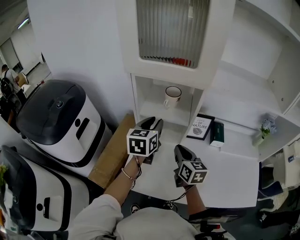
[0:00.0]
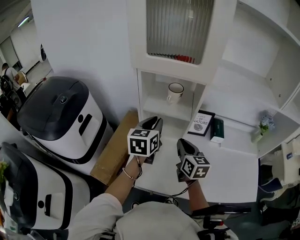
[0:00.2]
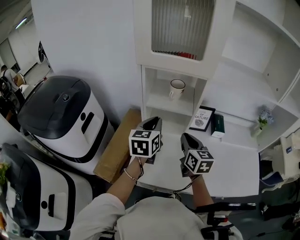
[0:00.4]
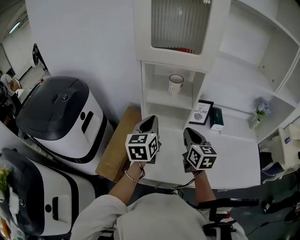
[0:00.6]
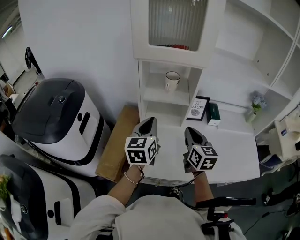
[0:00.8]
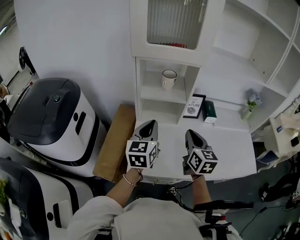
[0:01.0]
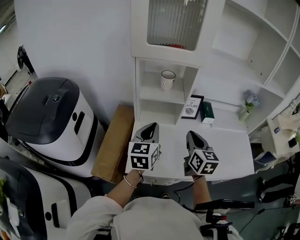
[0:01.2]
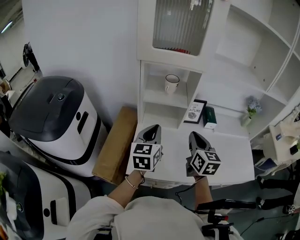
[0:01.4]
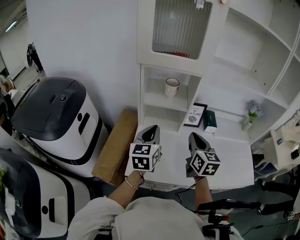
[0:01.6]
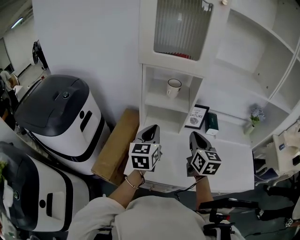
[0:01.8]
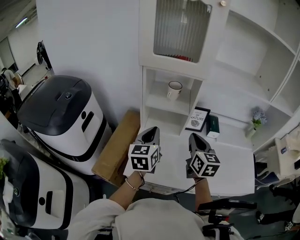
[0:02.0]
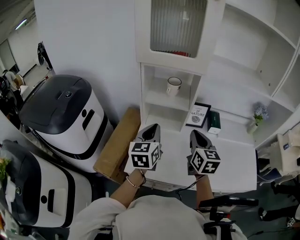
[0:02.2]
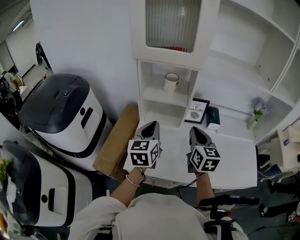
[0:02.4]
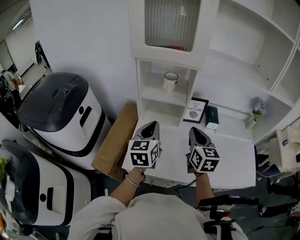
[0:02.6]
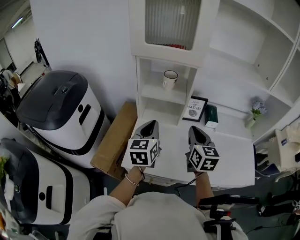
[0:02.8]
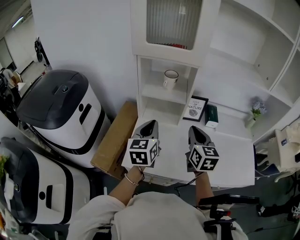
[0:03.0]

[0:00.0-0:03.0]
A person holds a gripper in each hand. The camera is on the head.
0:00.0 to 0:01.6: The right gripper shifts some 10 cm upward and backward; the left gripper heads backward, covering some 15 cm, and closes its fingers.
0:01.6 to 0:03.0: The grippers make only small movements.

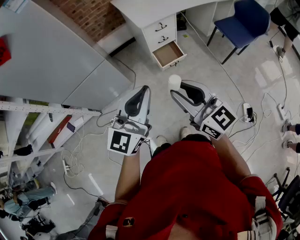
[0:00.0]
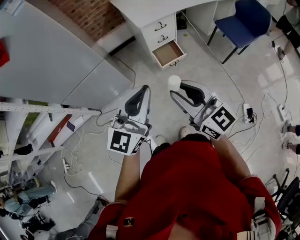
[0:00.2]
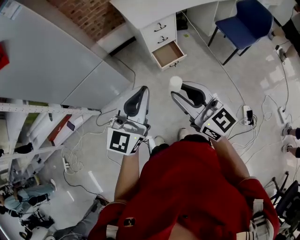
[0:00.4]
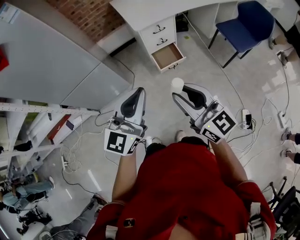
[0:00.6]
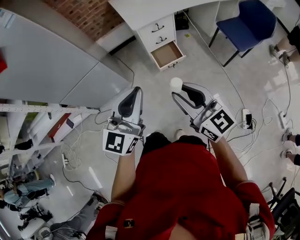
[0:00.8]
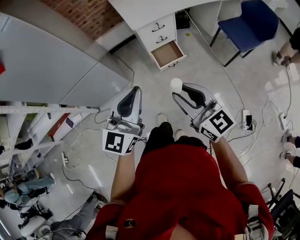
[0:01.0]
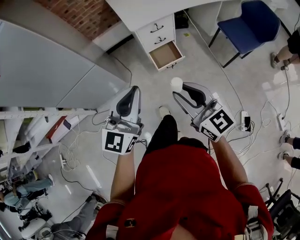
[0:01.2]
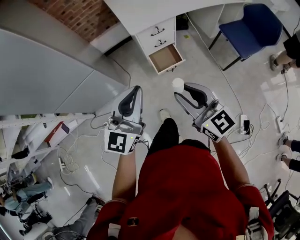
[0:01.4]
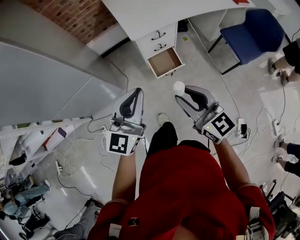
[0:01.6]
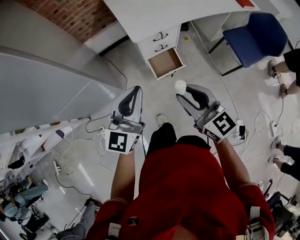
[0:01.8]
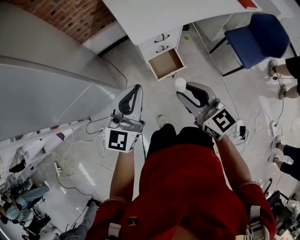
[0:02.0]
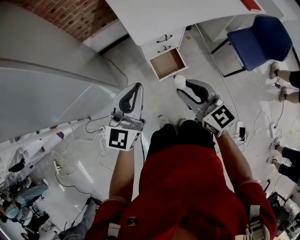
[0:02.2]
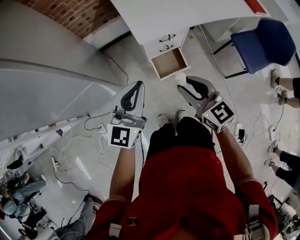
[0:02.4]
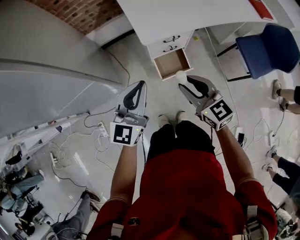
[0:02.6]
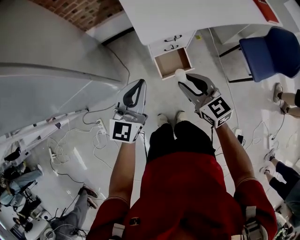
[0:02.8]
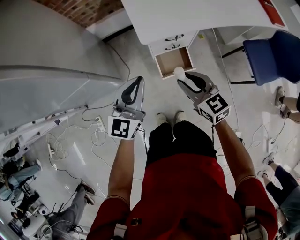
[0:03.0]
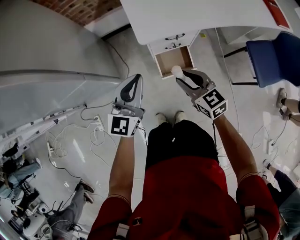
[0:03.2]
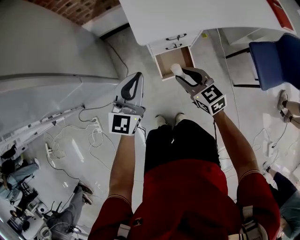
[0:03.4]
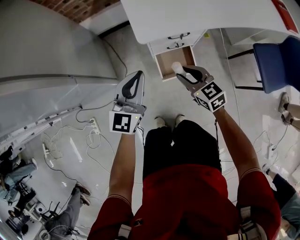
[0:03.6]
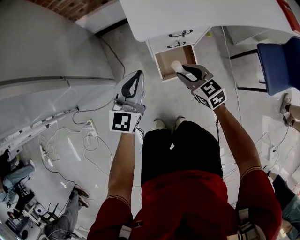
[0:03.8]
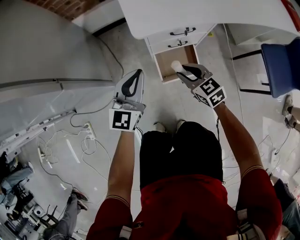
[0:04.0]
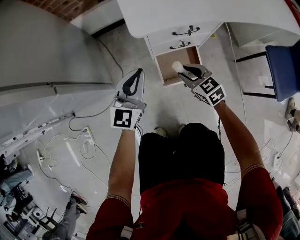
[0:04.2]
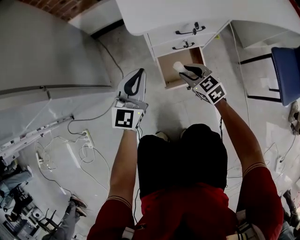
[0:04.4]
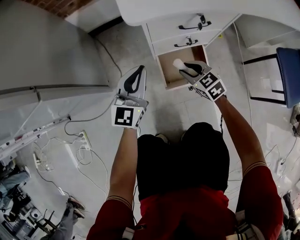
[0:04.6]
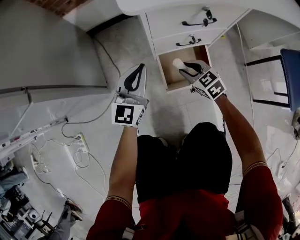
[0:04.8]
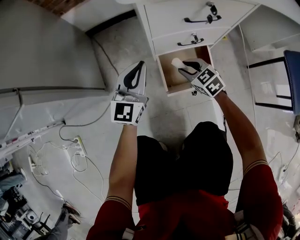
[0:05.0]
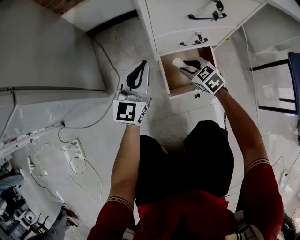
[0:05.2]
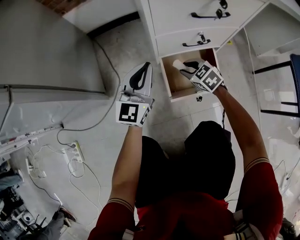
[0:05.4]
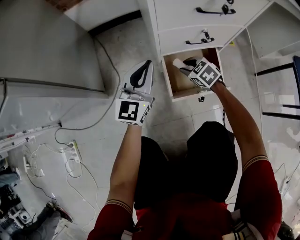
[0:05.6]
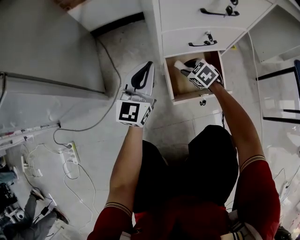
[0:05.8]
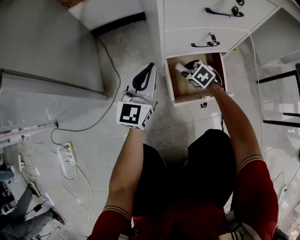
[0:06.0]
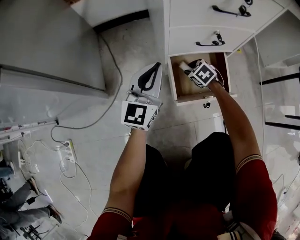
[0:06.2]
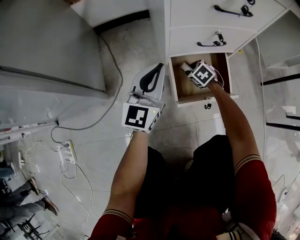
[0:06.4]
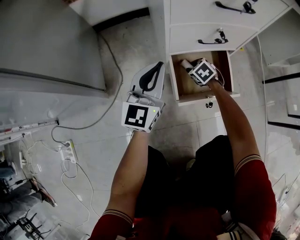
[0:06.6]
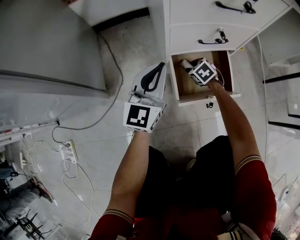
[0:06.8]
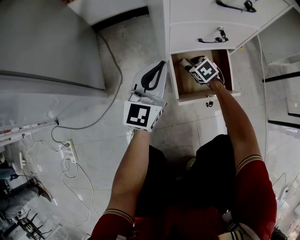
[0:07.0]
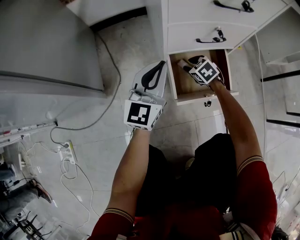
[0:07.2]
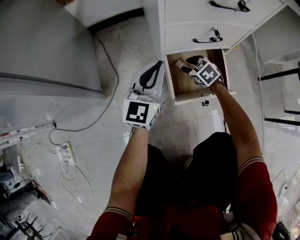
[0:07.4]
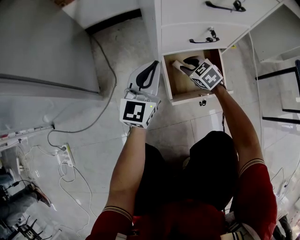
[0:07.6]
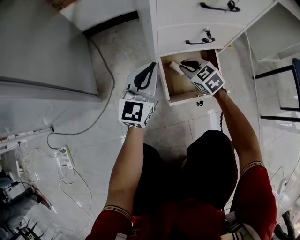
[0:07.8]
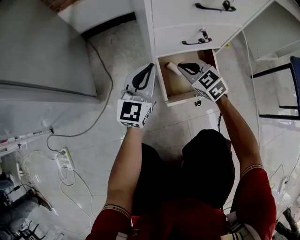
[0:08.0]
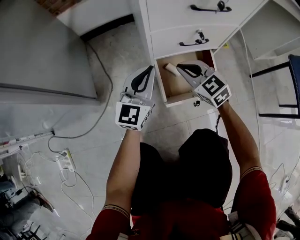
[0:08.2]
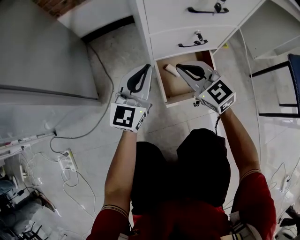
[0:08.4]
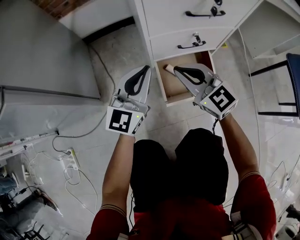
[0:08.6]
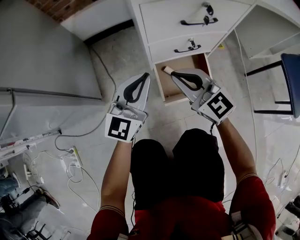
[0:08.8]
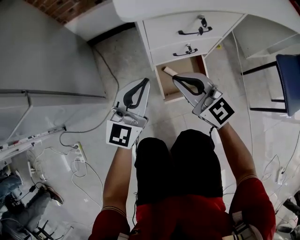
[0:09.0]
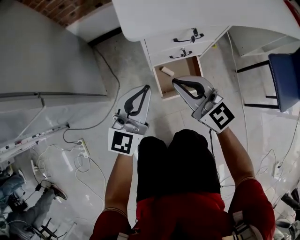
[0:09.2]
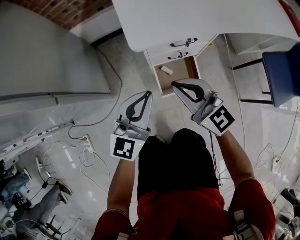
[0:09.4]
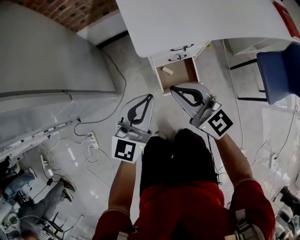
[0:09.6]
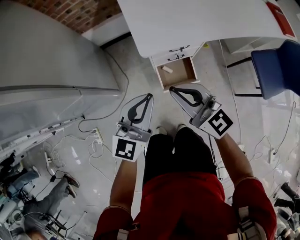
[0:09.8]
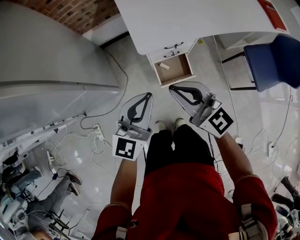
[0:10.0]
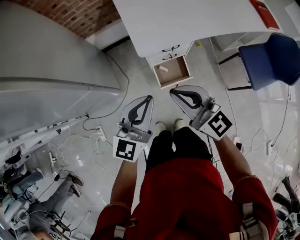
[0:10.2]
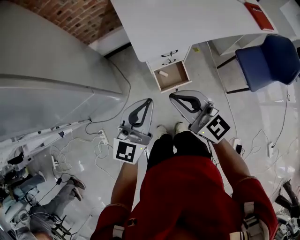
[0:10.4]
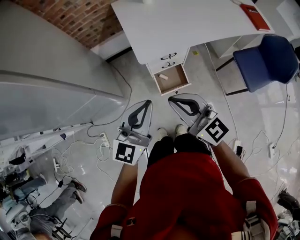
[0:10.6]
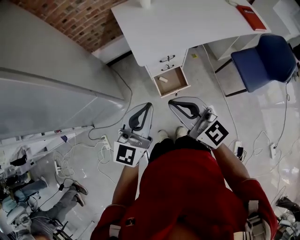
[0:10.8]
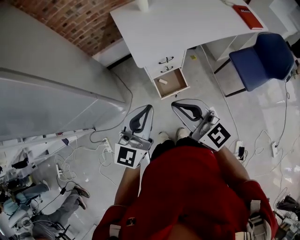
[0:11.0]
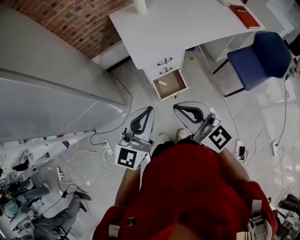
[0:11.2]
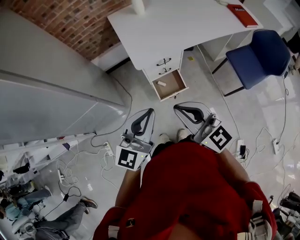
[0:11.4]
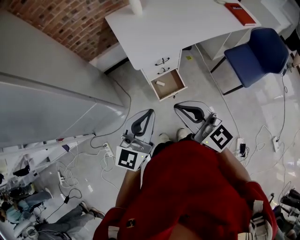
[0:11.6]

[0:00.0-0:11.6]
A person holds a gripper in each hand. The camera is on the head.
0:00.0 to 0:01.4: The right gripper shifts some 20 cm forward, to the right and downward. The left gripper heads forward and to the right, covering some 15 cm.
0:01.4 to 0:02.8: The two grippers go roughly 30 cm forward and downward.
0:02.8 to 0:04.4: Both grippers travel together downward, approximately 40 cm. The right gripper turns by approximately 20 degrees.
0:04.4 to 0:05.8: The grippers both shift downward by some 20 cm.
0:05.8 to 0:07.2: The right gripper heads downward, covering approximately 5 cm.
0:07.2 to 0:08.8: The left gripper shifts roughly 10 cm upward; the right gripper travels upward by about 35 cm, tips its fingers upward by approximately 50 degrees, and closes.
0:08.8 to 0:10.2: Both grippers travel together upward, approximately 50 cm.
0:10.2 to 0:11.6: Both grippers move backward and upward, about 10 cm.

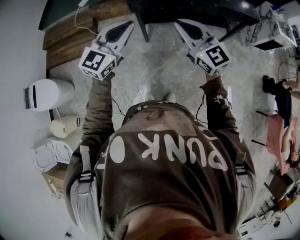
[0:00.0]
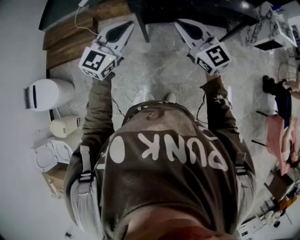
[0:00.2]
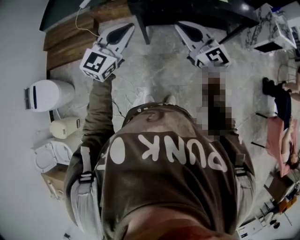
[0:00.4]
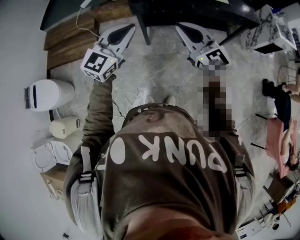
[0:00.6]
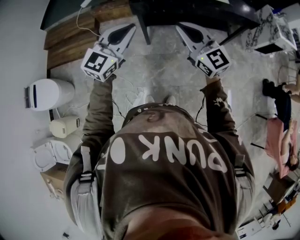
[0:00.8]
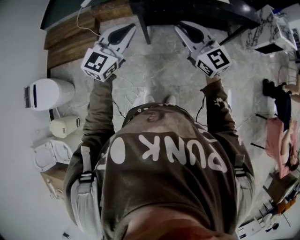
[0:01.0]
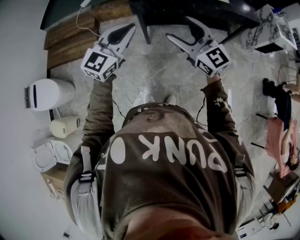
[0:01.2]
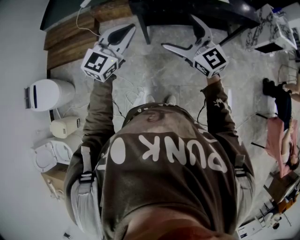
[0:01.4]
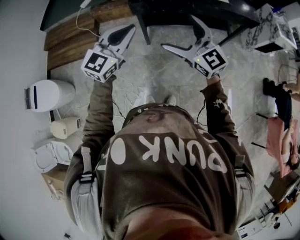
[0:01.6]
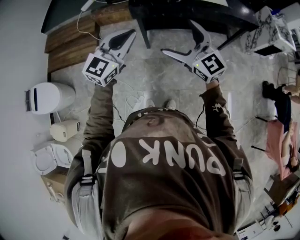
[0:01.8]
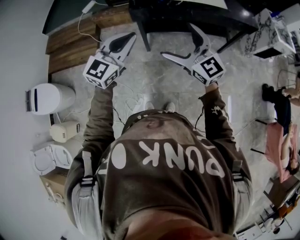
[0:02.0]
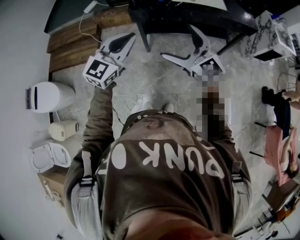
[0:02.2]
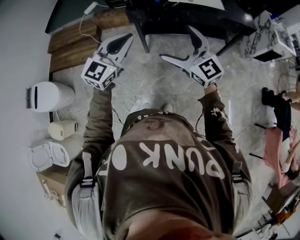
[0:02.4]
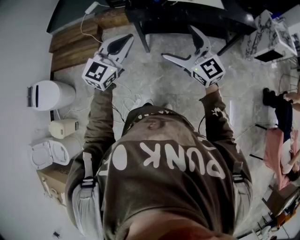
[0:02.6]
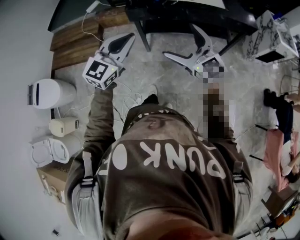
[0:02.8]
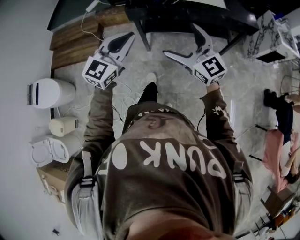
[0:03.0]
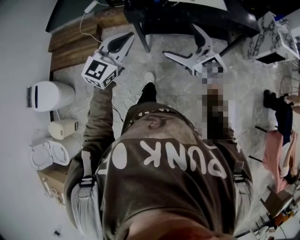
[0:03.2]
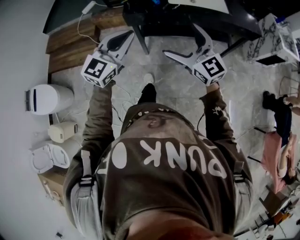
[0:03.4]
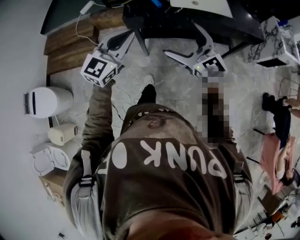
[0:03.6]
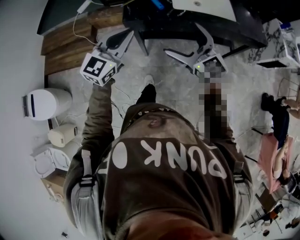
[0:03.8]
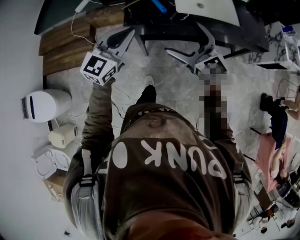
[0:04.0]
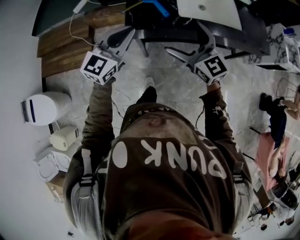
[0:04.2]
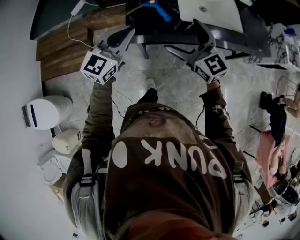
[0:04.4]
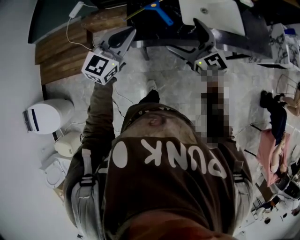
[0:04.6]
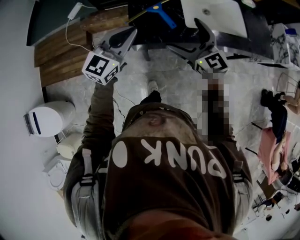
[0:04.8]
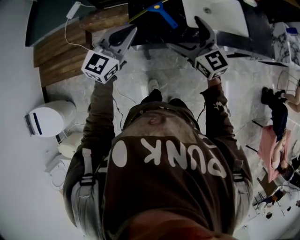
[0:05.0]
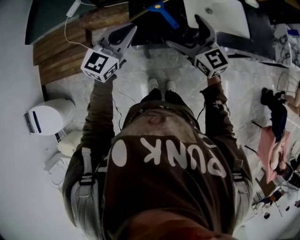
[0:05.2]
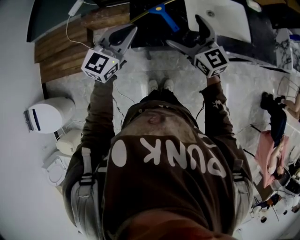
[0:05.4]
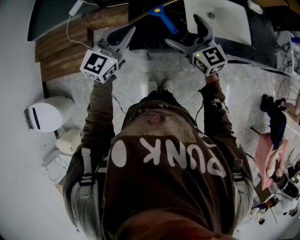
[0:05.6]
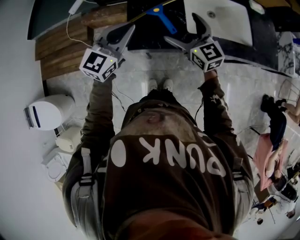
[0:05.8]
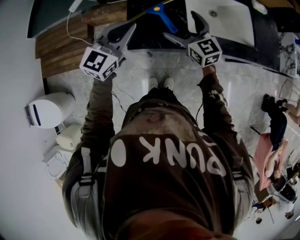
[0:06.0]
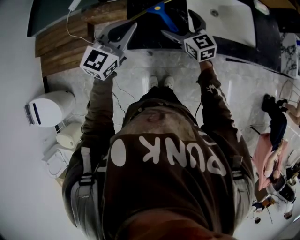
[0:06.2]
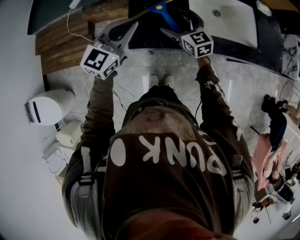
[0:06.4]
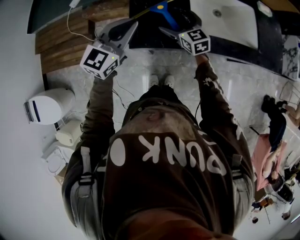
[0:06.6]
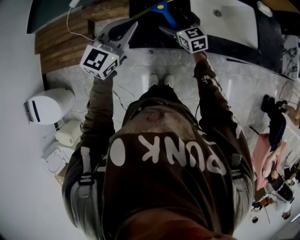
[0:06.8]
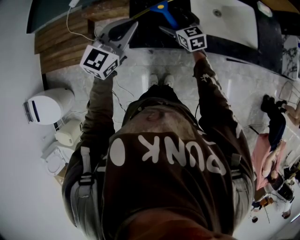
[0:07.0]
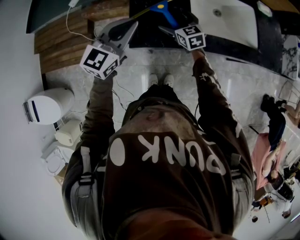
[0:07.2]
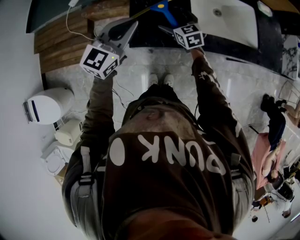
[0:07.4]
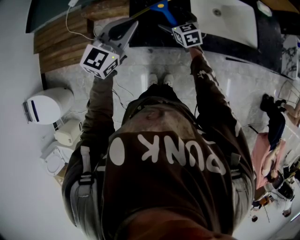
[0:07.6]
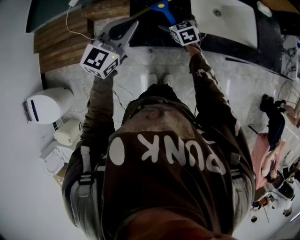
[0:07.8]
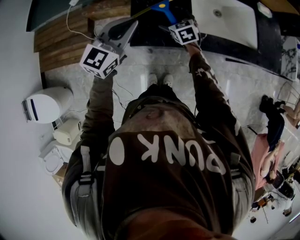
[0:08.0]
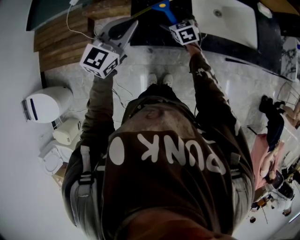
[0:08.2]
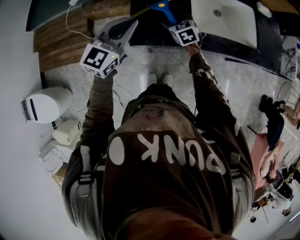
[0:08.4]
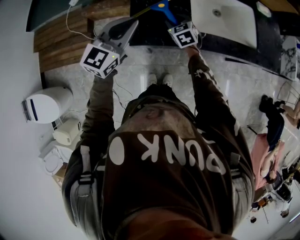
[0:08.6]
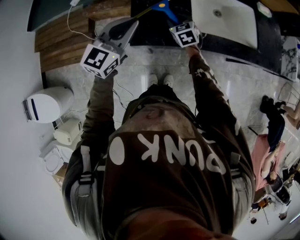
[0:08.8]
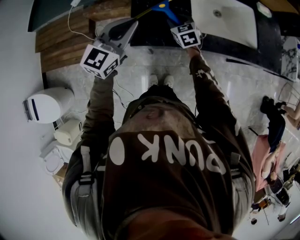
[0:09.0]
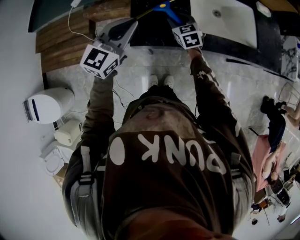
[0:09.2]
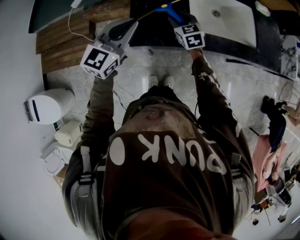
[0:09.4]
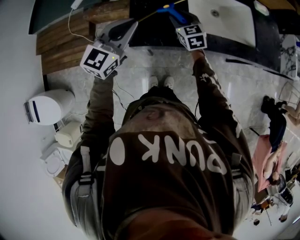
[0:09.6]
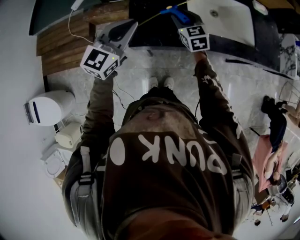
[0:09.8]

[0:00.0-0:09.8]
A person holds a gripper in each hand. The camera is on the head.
0:00.0 to 0:01.4: The right gripper opens up.
0:01.4 to 0:02.8: The two grippers go about 5 cm to the right.
0:02.8 to 0:04.2: Both grippers move forward, roughly 30 cm.
0:04.2 to 0:05.6: Both grippers move forward, about 15 cm.
0:05.6 to 0:07.0: The right gripper moves downward and forward, about 20 cm, and rotates approximately 20 degrees.
0:07.0 to 0:08.4: The right gripper closes.
0:08.4 to 0:09.8: The right gripper moves upward, about 10 cm, and closes up.
